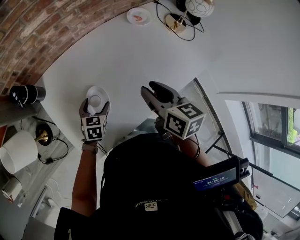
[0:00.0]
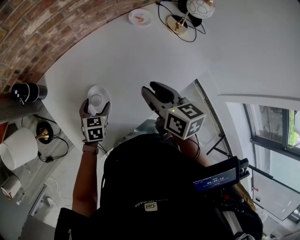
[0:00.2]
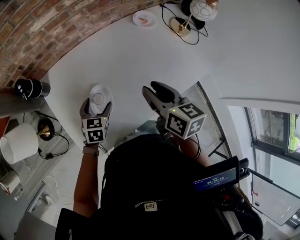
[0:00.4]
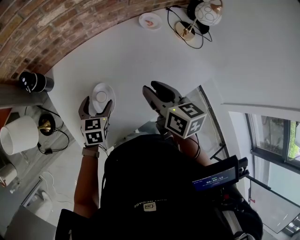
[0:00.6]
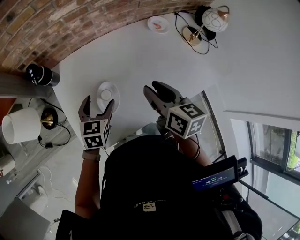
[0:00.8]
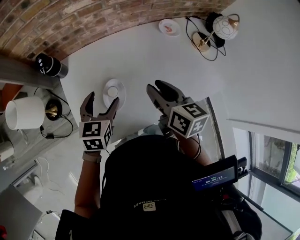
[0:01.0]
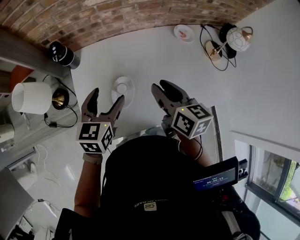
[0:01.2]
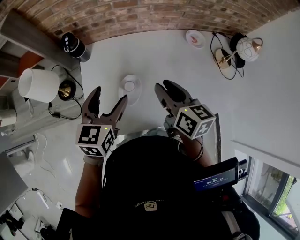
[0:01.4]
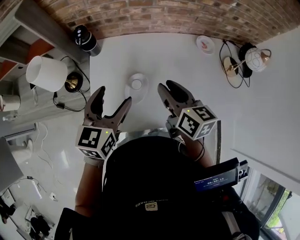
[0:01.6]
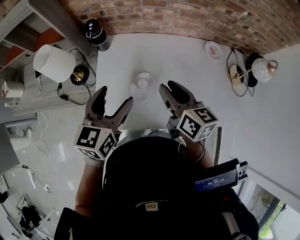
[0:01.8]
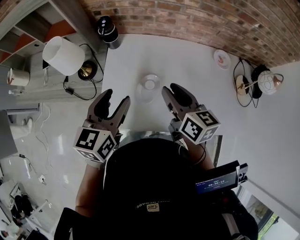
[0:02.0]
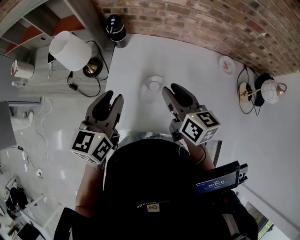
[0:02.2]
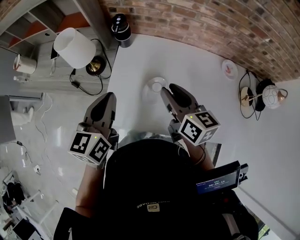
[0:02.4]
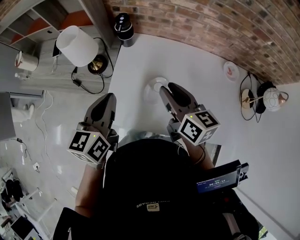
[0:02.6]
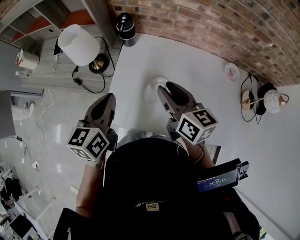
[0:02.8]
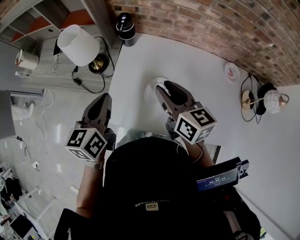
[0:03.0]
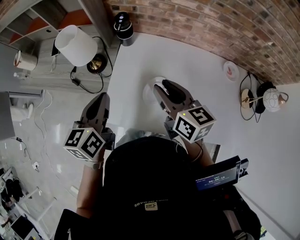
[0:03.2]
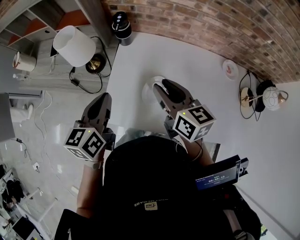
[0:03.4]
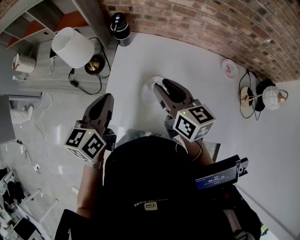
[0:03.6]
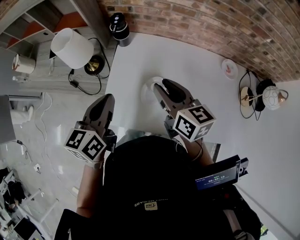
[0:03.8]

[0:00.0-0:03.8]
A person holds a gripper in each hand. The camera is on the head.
0:00.0 to 0:01.2: The left gripper shifts about 20 cm upward, and rotates some 30 degrees. The right gripper travels to the left by roughly 5 cm.
0:01.2 to 0:02.6: The right gripper shifts by approximately 10 cm, and turns by some 30 degrees, while the left gripper moves some 15 cm, rotates some 30 degrees, and closes up.
0:02.6 to 0:03.8: The grippers make only small movements.

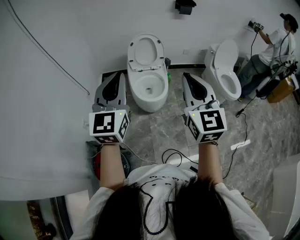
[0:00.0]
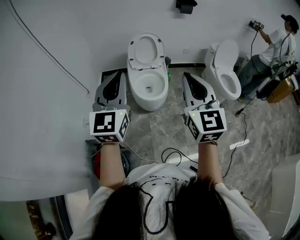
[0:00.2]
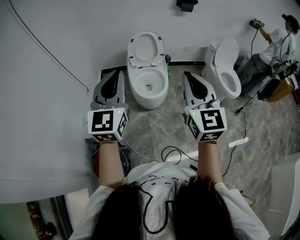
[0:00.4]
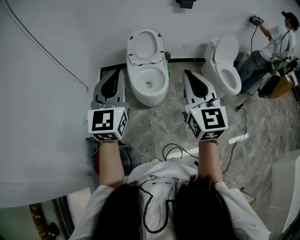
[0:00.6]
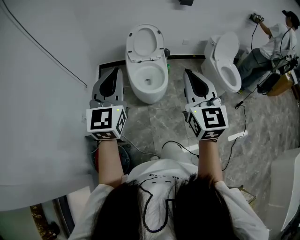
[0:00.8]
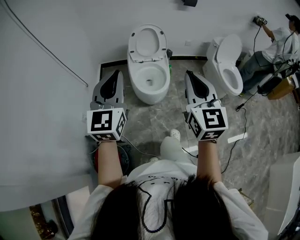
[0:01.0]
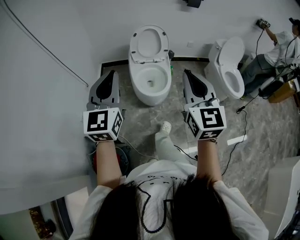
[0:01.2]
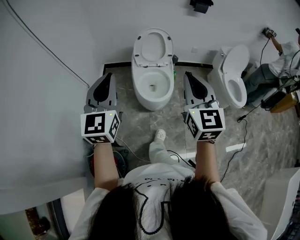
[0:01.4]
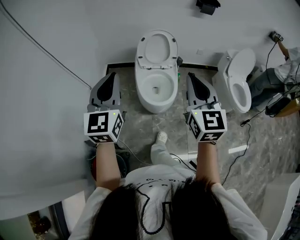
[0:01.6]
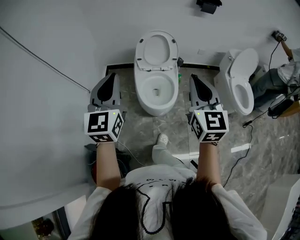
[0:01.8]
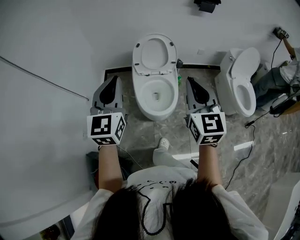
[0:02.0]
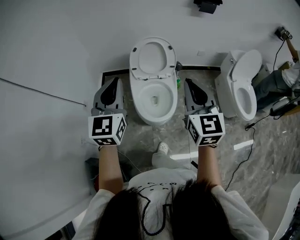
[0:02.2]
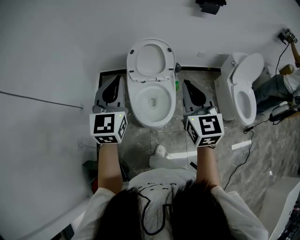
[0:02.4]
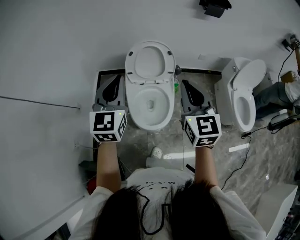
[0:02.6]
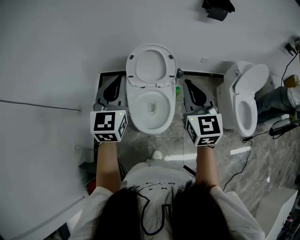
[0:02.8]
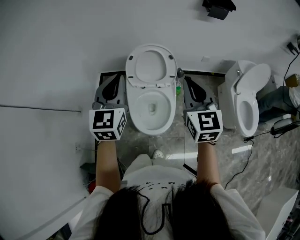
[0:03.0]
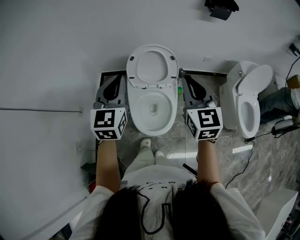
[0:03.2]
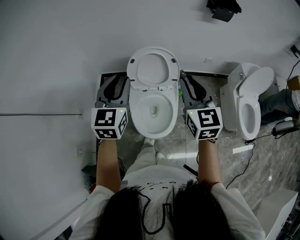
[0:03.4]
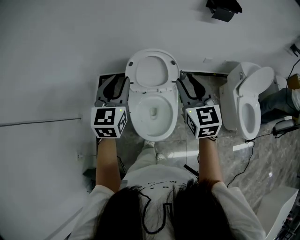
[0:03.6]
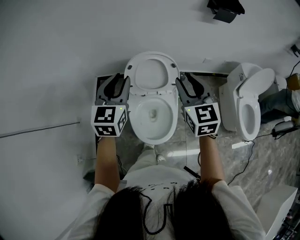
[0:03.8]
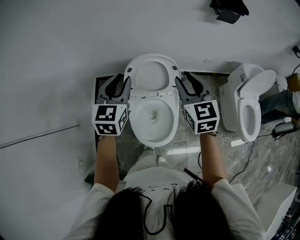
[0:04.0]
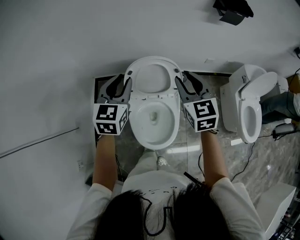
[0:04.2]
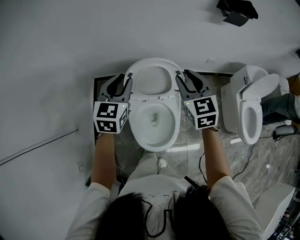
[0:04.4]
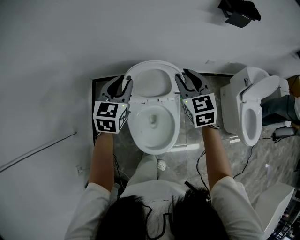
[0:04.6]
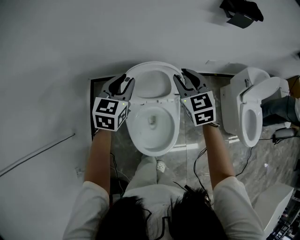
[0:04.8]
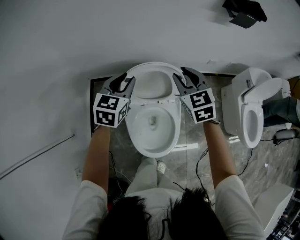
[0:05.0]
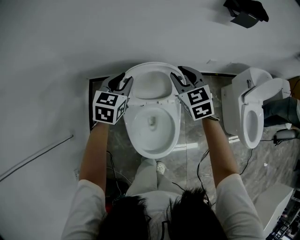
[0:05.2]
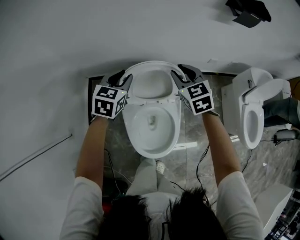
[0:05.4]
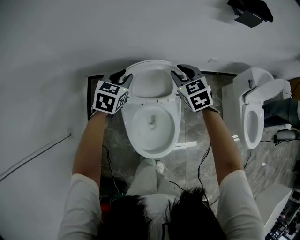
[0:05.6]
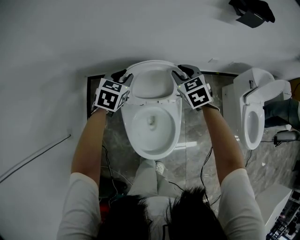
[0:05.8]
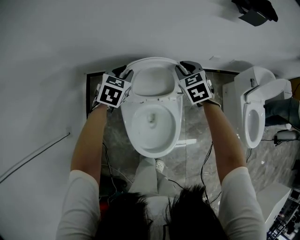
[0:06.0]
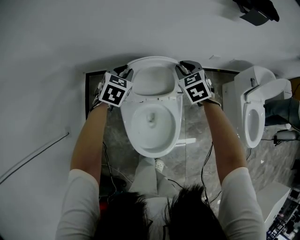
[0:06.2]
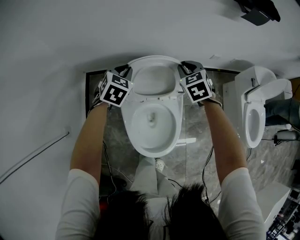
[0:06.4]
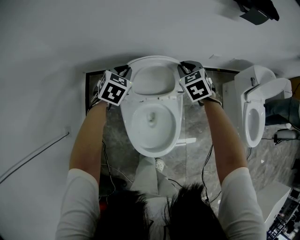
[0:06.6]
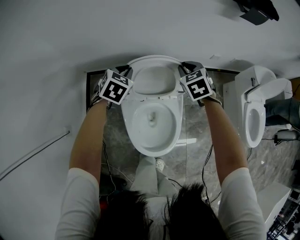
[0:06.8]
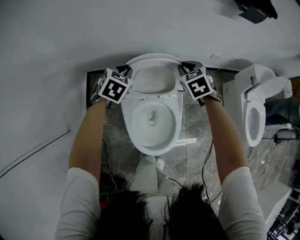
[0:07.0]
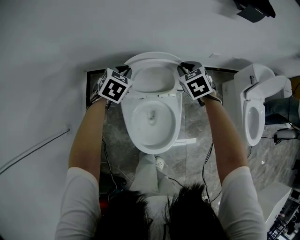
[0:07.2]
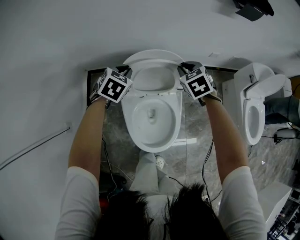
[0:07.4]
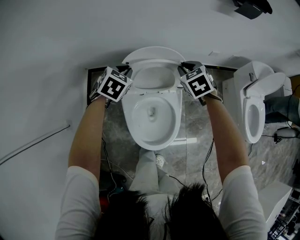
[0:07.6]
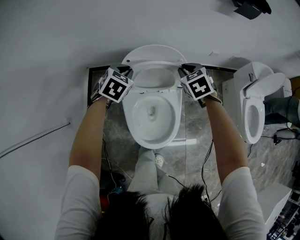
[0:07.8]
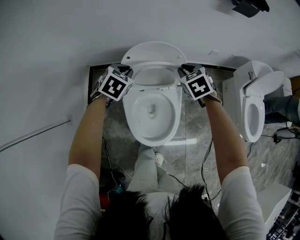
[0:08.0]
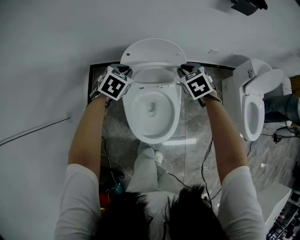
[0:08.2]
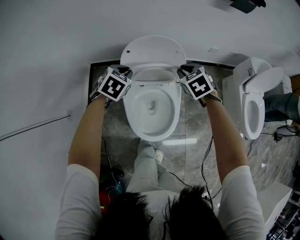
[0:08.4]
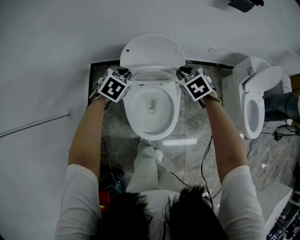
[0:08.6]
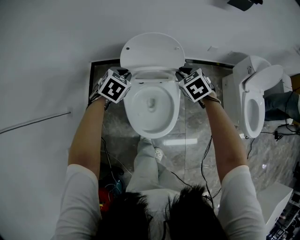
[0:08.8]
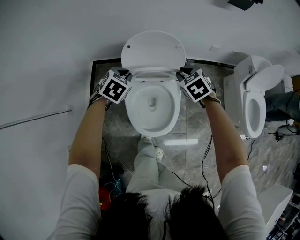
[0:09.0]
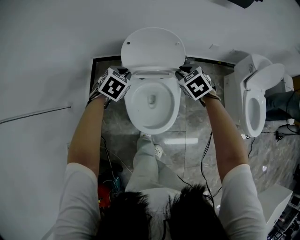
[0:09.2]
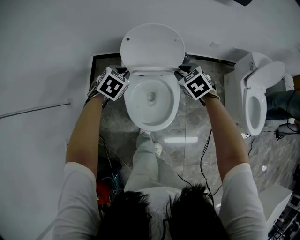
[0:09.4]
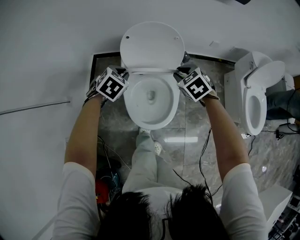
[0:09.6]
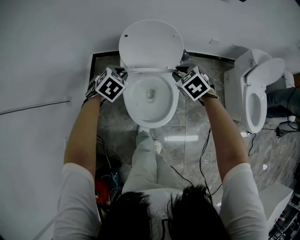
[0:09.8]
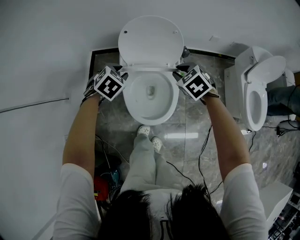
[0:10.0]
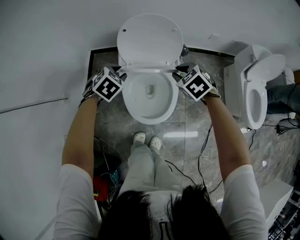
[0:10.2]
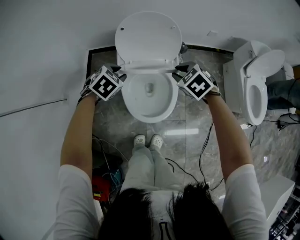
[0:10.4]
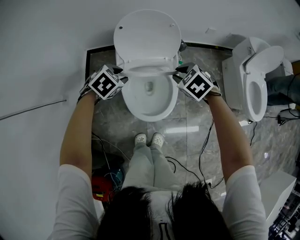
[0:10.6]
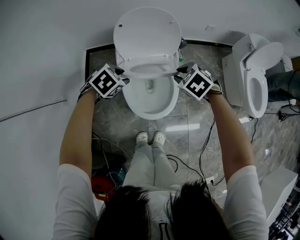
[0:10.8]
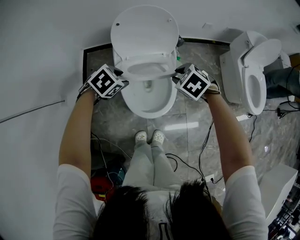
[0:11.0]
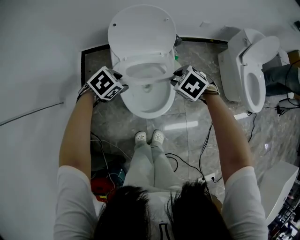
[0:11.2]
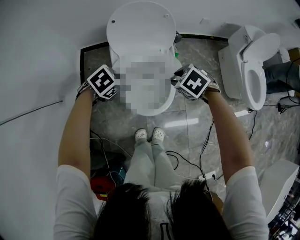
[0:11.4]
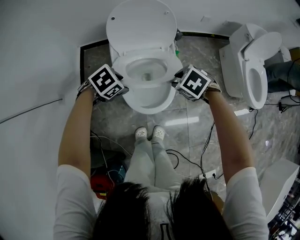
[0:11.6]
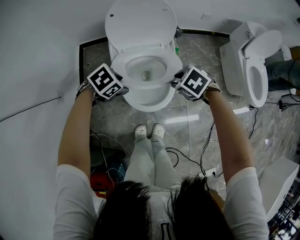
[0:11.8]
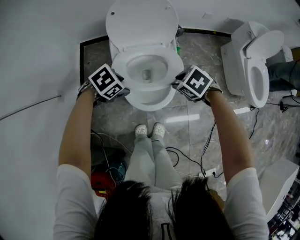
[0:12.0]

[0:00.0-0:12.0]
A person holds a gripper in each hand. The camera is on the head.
0:00.0 to 0:01.6: The right gripper heads forward, covering some 15 cm. The left gripper heads forward and to the left, covering roughly 15 cm.
0:01.6 to 0:03.0: Both grippers move forward, some 35 cm.
0:03.0 to 0:04.4: Both grippers travel together forward and downward, roughly 25 cm. The right gripper opens up, while the left gripper opens its fingers.
0:04.4 to 0:06.0: Both grippers move downward and forward, some 20 cm. The left gripper changes its angle by about 20 degrees. Meanwhile the right gripper swivels about 20 degrees.
0:06.0 to 0:07.6: The two grippers go some 5 cm backward.
0:07.6 to 0:09.0: The grippers both shift backward by approximately 10 cm.
0:09.0 to 0:10.4: Both grippers travel together backward, approximately 10 cm.
0:10.4 to 0:12.0: The right gripper shifts by roughly 10 cm, while the left gripper changes place by about 15 cm, swivels roughly 30 degrees, and opens its fingers.

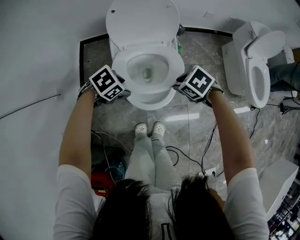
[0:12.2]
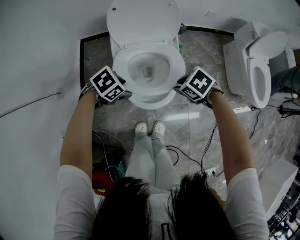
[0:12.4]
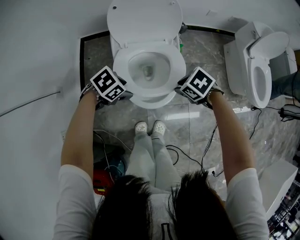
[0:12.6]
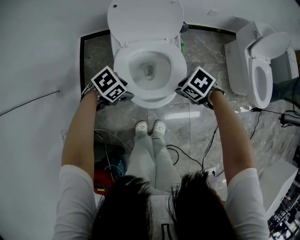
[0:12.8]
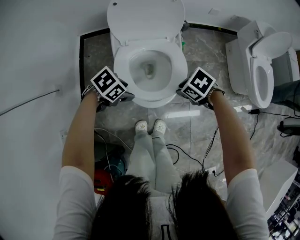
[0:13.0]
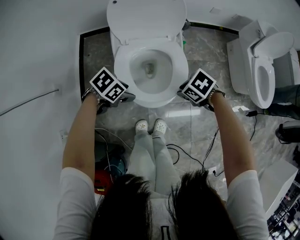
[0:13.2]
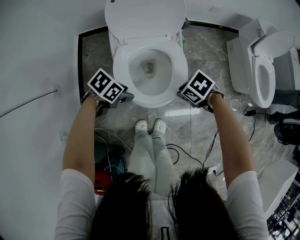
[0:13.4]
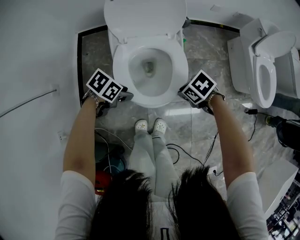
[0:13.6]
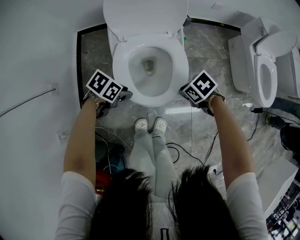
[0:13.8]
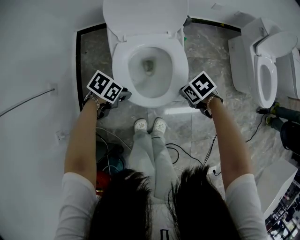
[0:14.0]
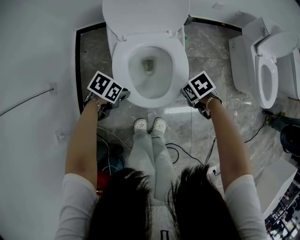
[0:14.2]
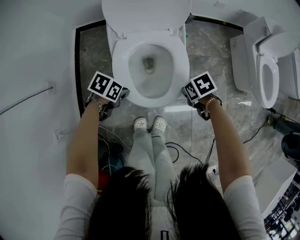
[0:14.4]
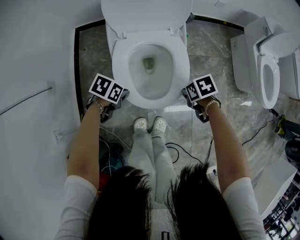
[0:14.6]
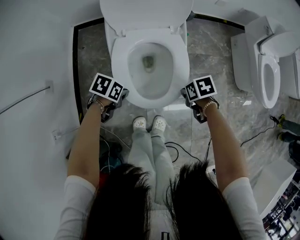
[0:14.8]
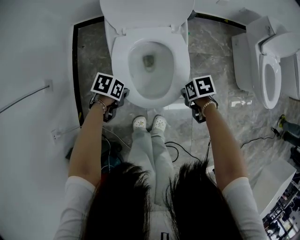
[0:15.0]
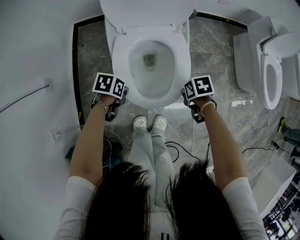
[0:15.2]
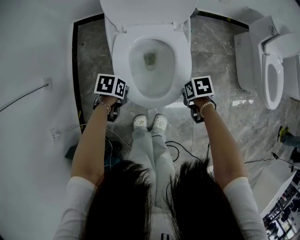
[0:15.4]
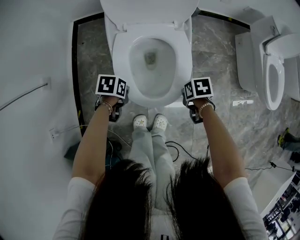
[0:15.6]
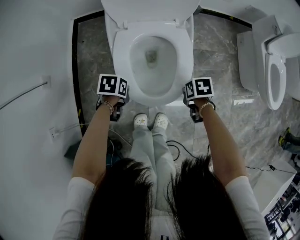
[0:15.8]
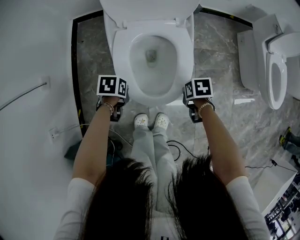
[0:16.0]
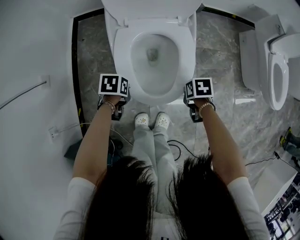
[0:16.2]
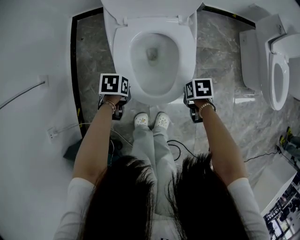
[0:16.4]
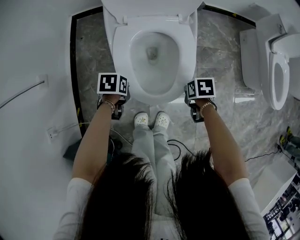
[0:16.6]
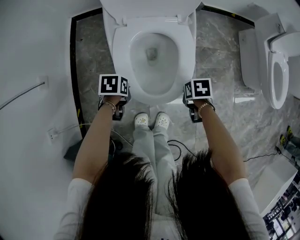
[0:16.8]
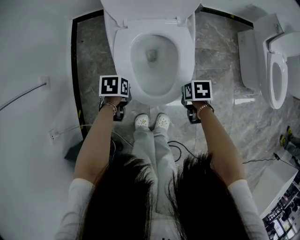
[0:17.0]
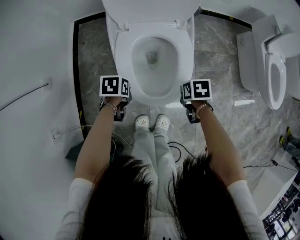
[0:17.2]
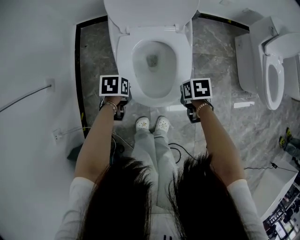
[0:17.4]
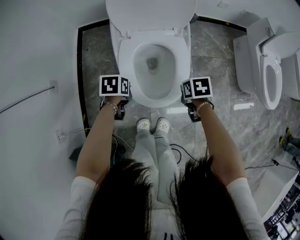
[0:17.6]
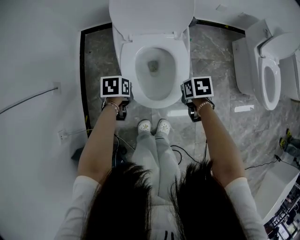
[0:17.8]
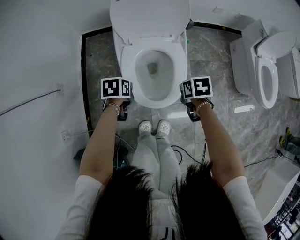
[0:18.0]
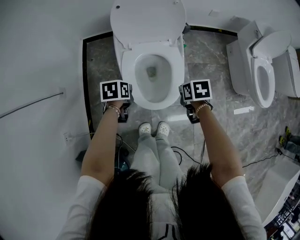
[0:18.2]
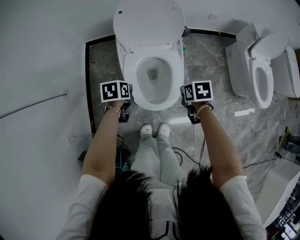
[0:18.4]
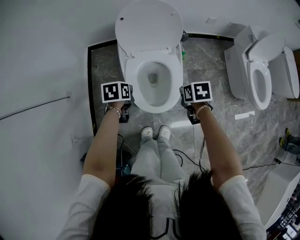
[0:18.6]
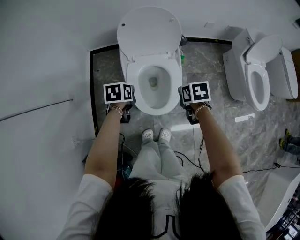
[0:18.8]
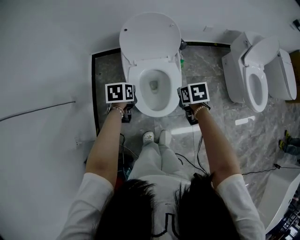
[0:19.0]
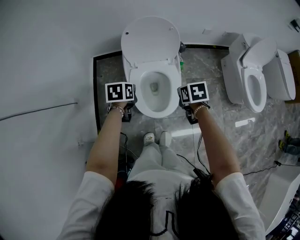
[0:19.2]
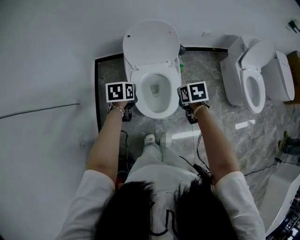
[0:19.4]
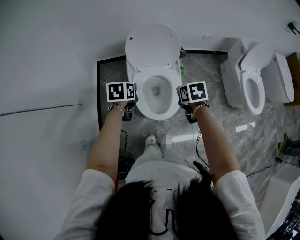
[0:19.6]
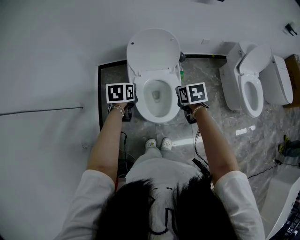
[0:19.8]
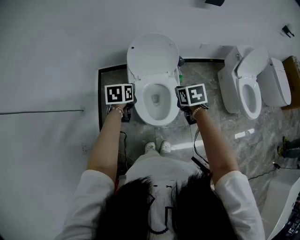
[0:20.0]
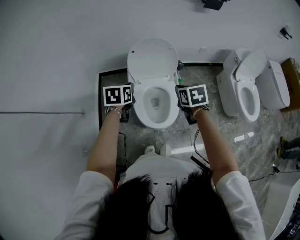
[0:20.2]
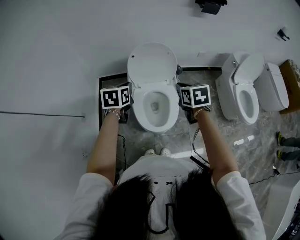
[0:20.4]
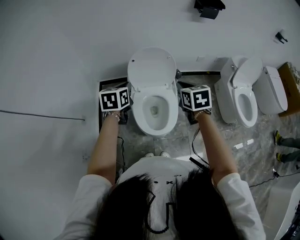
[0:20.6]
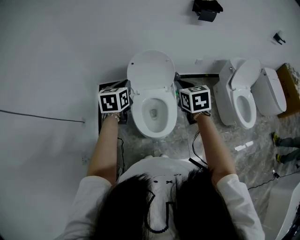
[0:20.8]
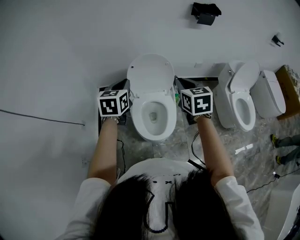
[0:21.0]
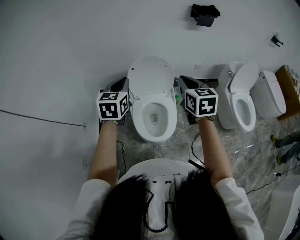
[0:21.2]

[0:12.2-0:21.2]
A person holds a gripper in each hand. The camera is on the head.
0:12.2 to 0:13.8: Both grippers travel together downward, roughly 10 cm. The left gripper swivels approximately 30 degrees, and closes.
0:13.8 to 0:15.2: Both grippers travel together downward, about 10 cm. The left gripper rotates about 30 degrees, and closes, while the right gripper changes its angle by about 30 degrees.
0:15.2 to 0:16.6: Both grippers move downward, roughly 5 cm.
0:16.6 to 0:18.2: The grippers both shift upward by roughly 15 cm.
0:18.2 to 0:19.8: Both grippers travel together upward, about 20 cm.
0:19.8 to 0:21.2: Both grippers travel together upward, approximately 20 cm. The left gripper tilts its fingers some 30 degrees upward, while the right gripper tilts its fingers approximately 30 degrees upward.
